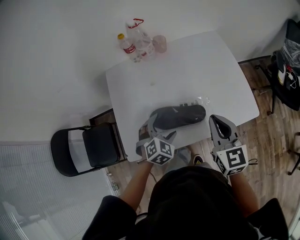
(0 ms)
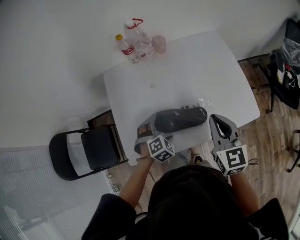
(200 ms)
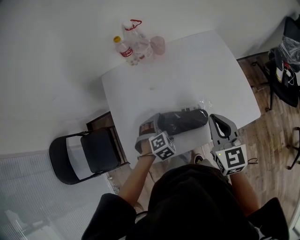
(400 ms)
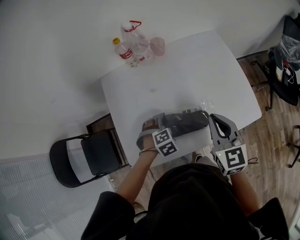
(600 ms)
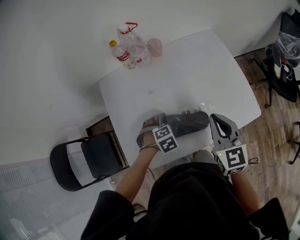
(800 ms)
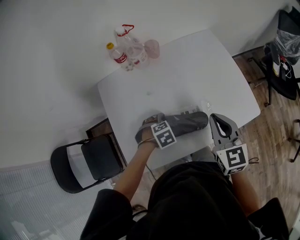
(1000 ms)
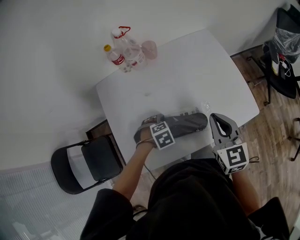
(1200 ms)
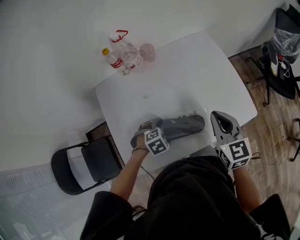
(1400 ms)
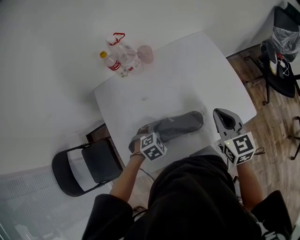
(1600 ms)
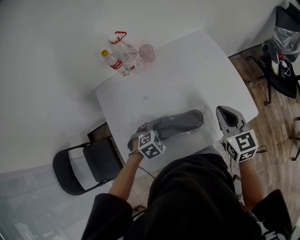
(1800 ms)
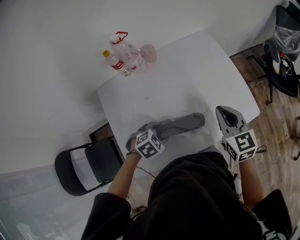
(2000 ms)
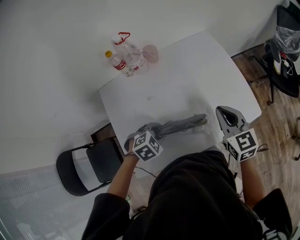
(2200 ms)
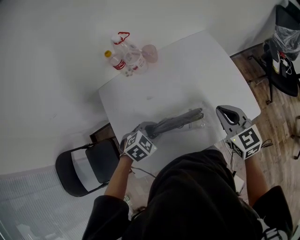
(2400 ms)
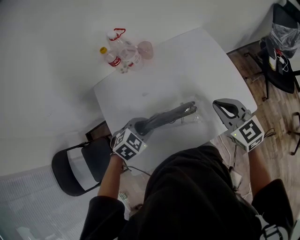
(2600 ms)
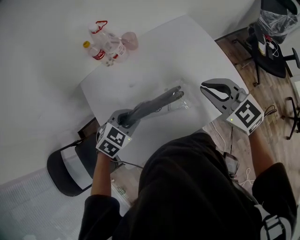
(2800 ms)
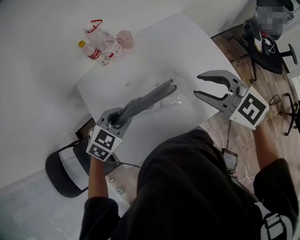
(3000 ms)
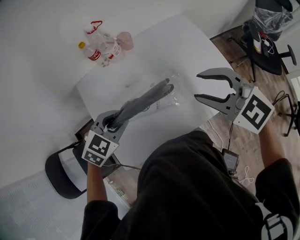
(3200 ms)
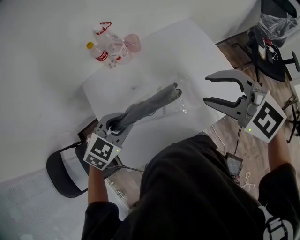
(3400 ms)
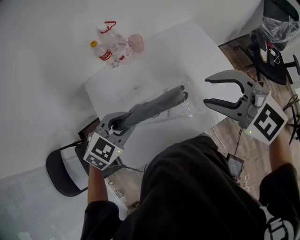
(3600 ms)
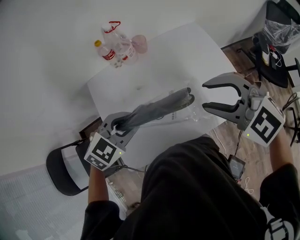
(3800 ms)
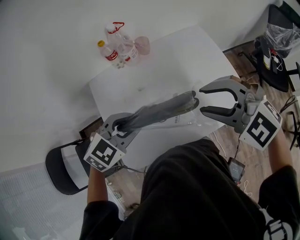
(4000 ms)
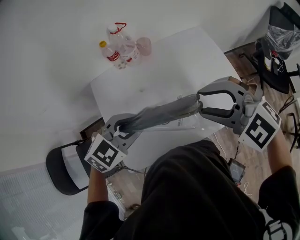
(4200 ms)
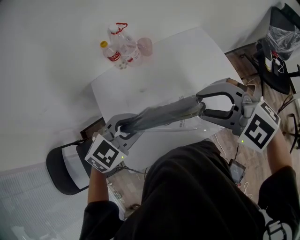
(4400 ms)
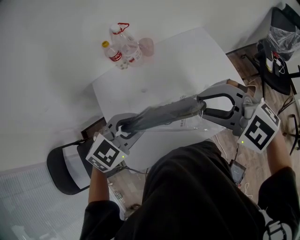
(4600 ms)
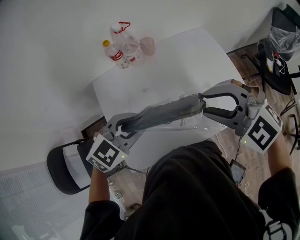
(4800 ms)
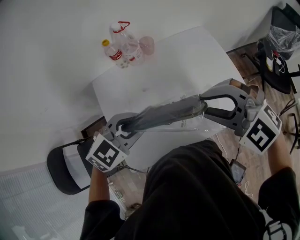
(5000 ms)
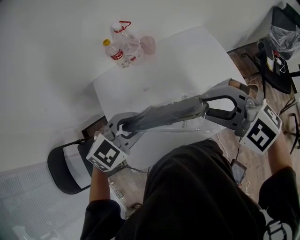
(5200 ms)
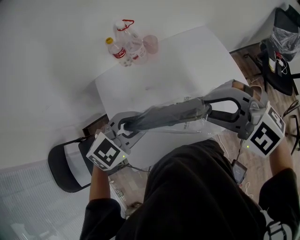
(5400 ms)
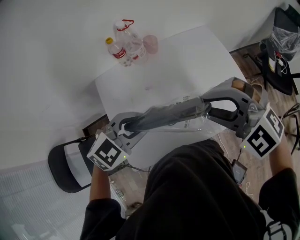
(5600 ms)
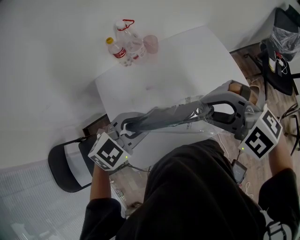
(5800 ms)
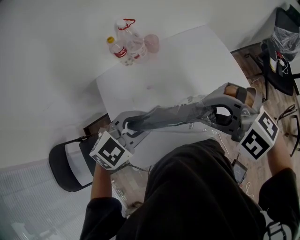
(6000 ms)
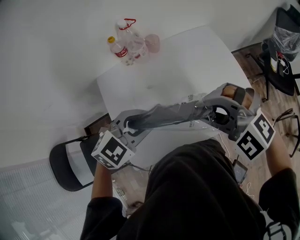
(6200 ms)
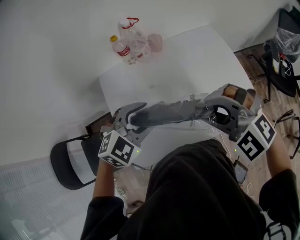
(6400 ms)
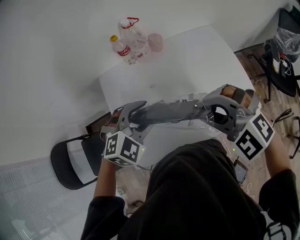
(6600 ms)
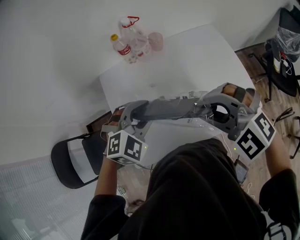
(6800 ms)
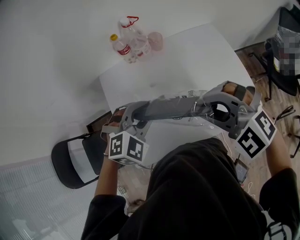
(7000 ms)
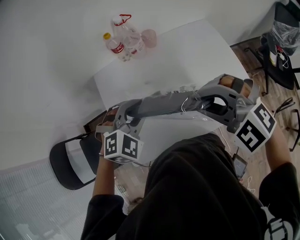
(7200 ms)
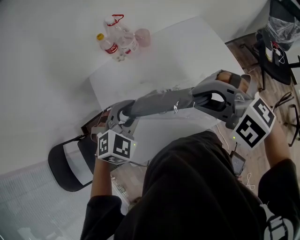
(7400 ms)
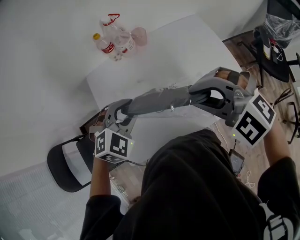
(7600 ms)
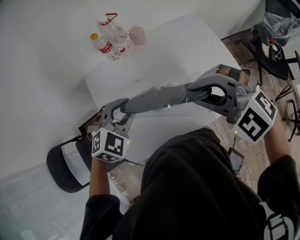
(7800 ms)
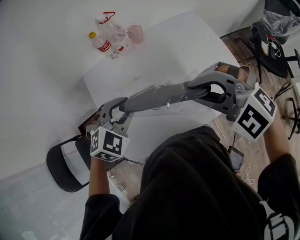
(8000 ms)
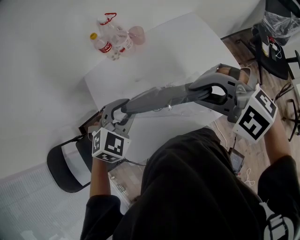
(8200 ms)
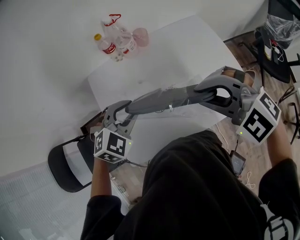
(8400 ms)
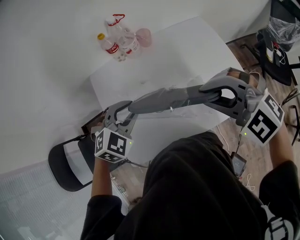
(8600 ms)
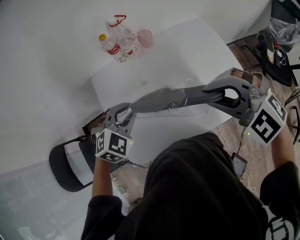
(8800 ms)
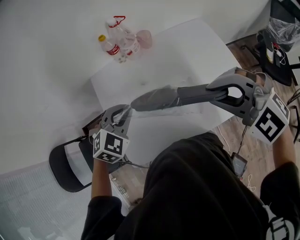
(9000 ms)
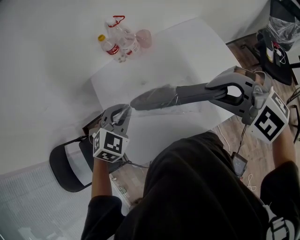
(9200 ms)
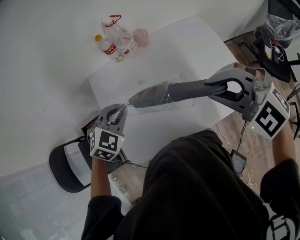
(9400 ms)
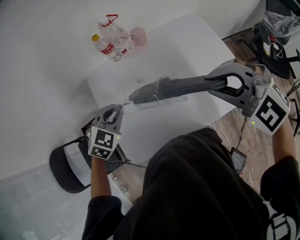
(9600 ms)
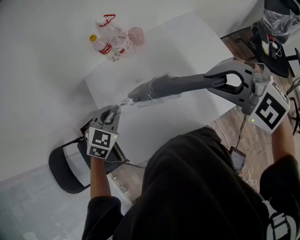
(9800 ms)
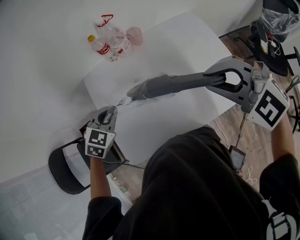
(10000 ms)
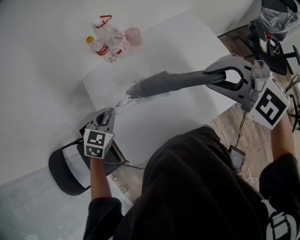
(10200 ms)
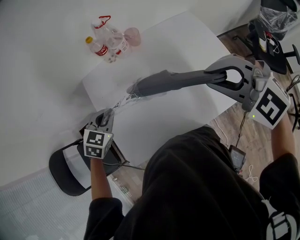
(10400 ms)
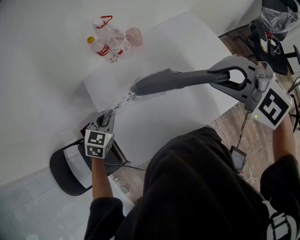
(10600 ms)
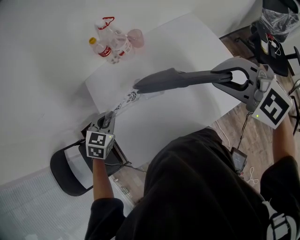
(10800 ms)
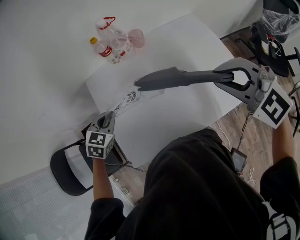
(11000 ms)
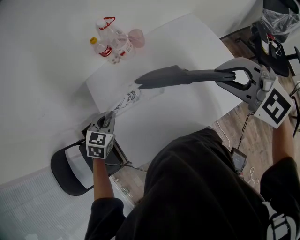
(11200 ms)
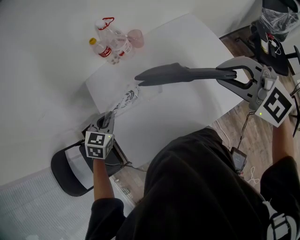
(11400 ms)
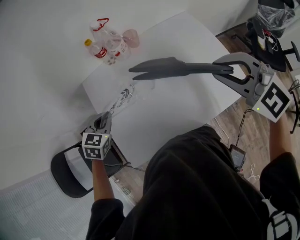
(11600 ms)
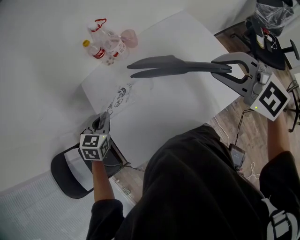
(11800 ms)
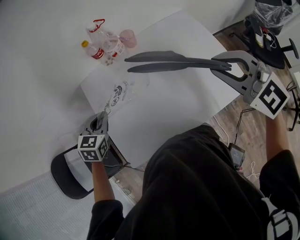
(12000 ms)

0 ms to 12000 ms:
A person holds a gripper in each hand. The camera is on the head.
0 ms to 1600 ms: The right gripper shifts by about 10 cm. The left gripper moves downward, some 5 cm, and rotates about 30 degrees.
1600 ms to 3000 ms: The left gripper shifts roughly 15 cm upward and to the left, and closes, while the right gripper goes roughly 10 cm upward, swivels about 40 degrees, and opens up.
3000 ms to 4400 ms: The left gripper is displaced upward by some 10 cm. The right gripper shifts roughly 5 cm to the left, and changes its angle by approximately 30 degrees.
4400 ms to 6000 ms: The grippers make only small movements.
6000 ms to 7600 ms: The left gripper ends up about 5 cm from where it was, and changes its angle by approximately 30 degrees.
7600 ms to 9000 ms: The grippers make only small movements.
9000 ms to 10400 ms: The left gripper moves to the left, roughly 5 cm, and changes its angle by about 20 degrees.
10400 ms to 12000 ms: The right gripper changes place by roughly 5 cm.

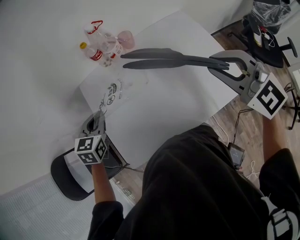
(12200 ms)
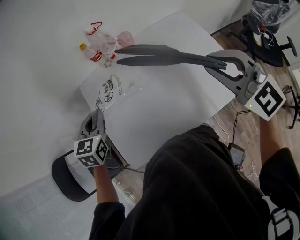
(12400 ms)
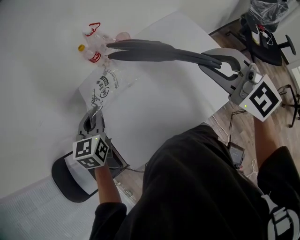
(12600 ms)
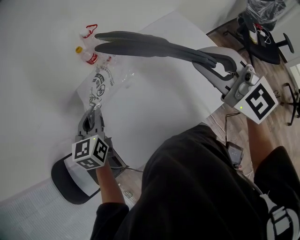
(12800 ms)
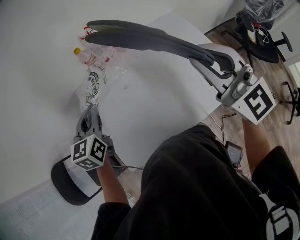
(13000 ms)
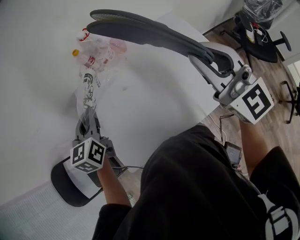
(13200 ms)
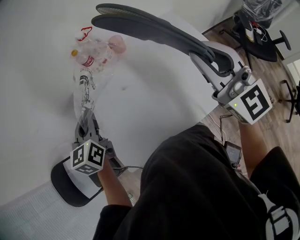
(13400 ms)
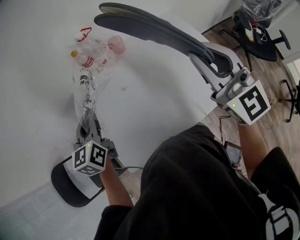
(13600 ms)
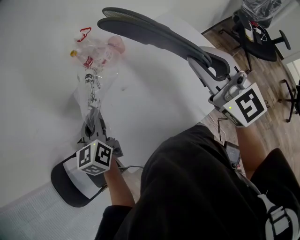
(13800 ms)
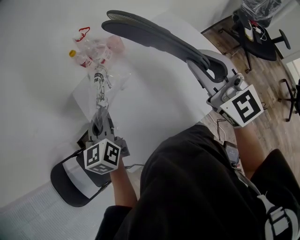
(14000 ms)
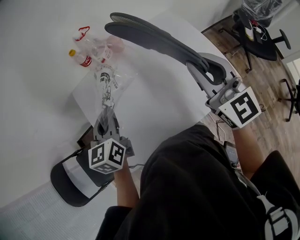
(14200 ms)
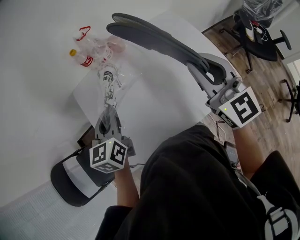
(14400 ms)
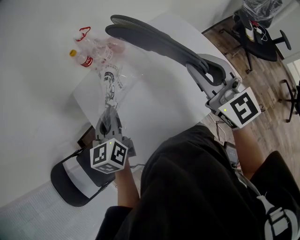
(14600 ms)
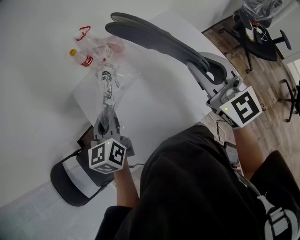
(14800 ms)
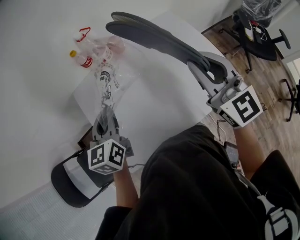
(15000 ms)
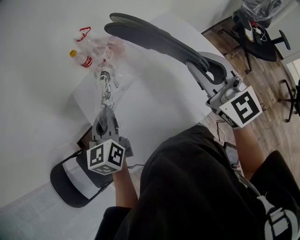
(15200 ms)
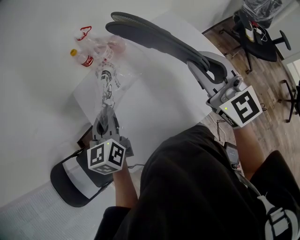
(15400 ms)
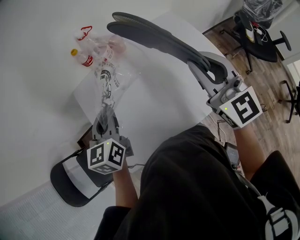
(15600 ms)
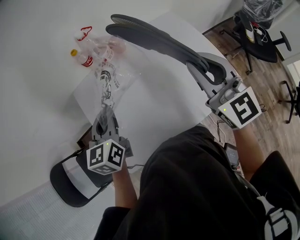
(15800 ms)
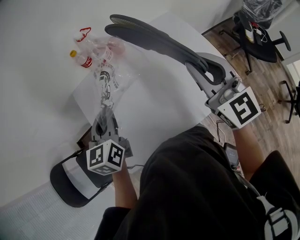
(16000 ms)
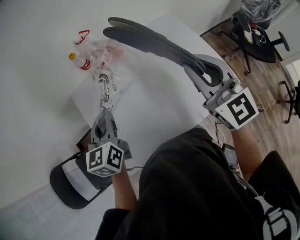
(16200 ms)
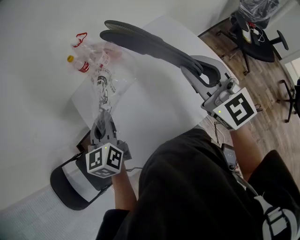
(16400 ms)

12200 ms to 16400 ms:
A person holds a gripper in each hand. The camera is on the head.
12200 ms to 13600 ms: The left gripper goes roughly 10 cm upward, and turns by roughly 30 degrees. The right gripper changes place by some 5 cm, and turns by about 30 degrees.
13600 ms to 15000 ms: The left gripper heads to the right, covering about 5 cm.
15000 ms to 16400 ms: Neither gripper changes place.

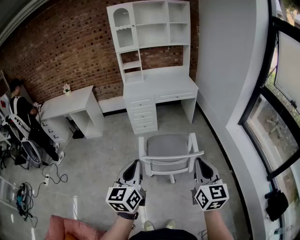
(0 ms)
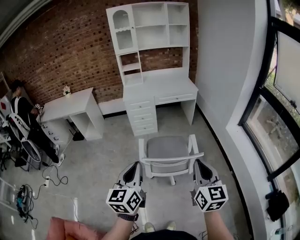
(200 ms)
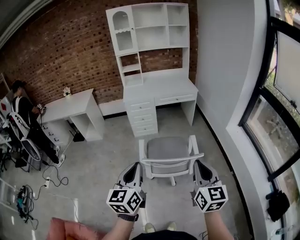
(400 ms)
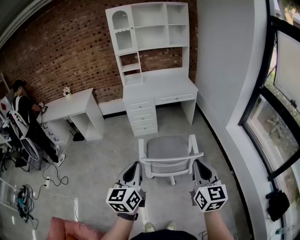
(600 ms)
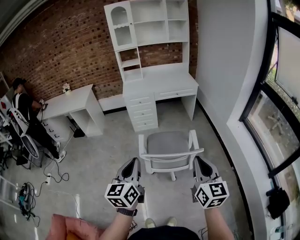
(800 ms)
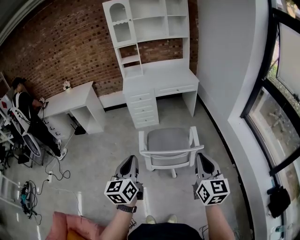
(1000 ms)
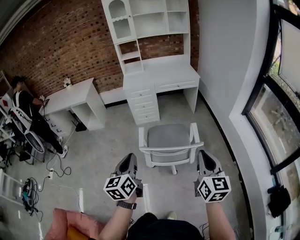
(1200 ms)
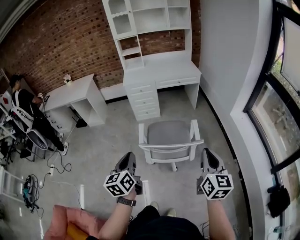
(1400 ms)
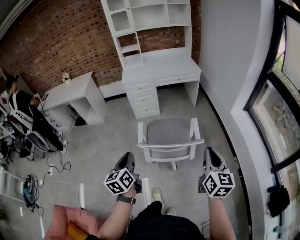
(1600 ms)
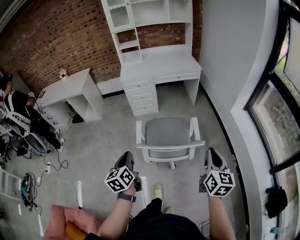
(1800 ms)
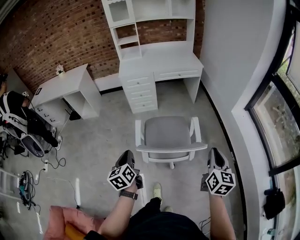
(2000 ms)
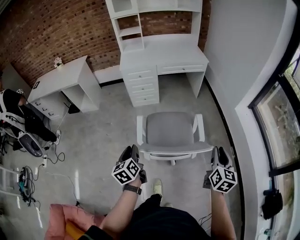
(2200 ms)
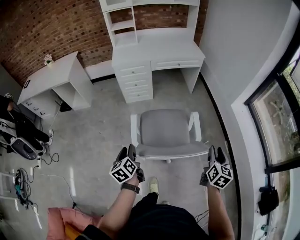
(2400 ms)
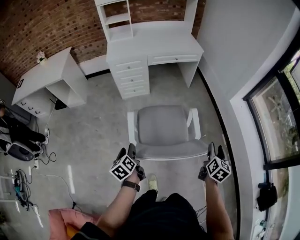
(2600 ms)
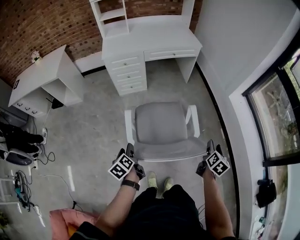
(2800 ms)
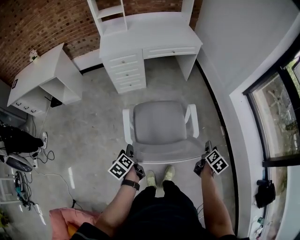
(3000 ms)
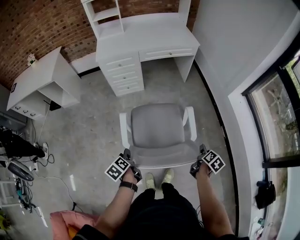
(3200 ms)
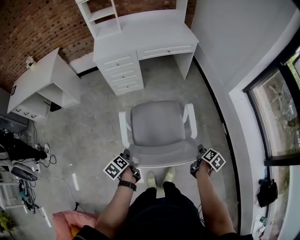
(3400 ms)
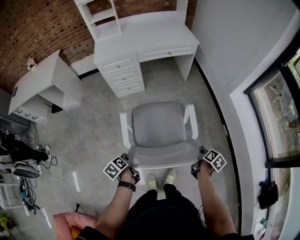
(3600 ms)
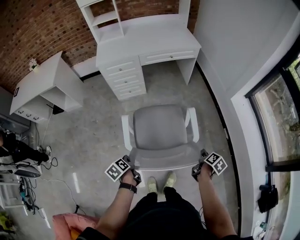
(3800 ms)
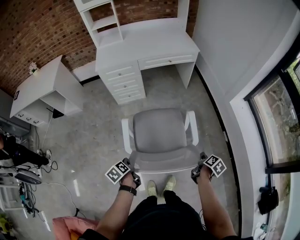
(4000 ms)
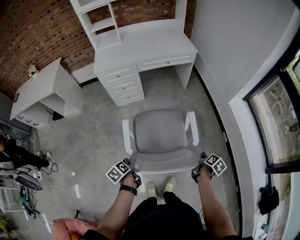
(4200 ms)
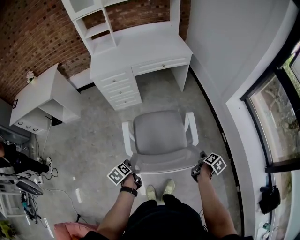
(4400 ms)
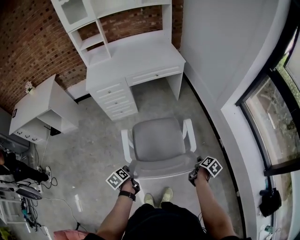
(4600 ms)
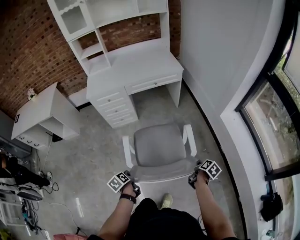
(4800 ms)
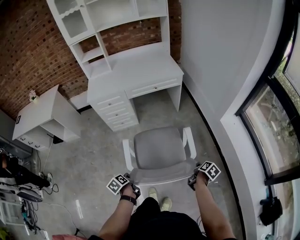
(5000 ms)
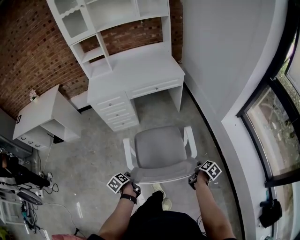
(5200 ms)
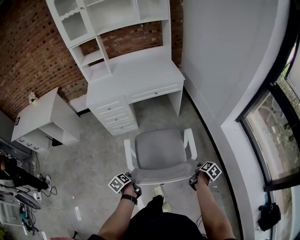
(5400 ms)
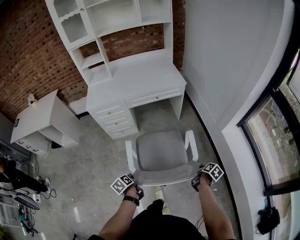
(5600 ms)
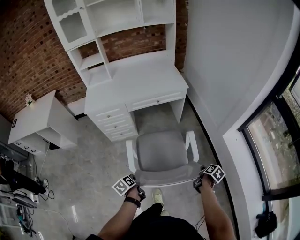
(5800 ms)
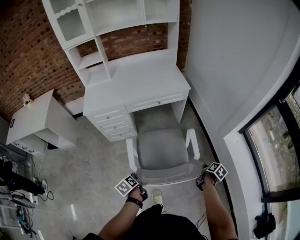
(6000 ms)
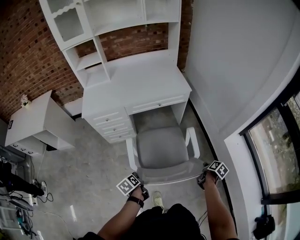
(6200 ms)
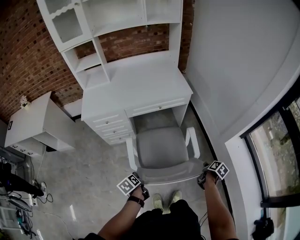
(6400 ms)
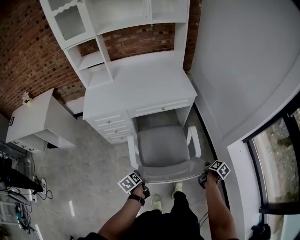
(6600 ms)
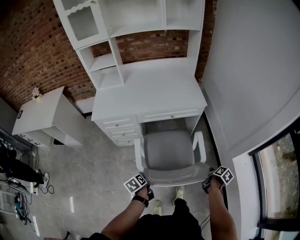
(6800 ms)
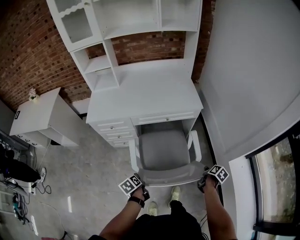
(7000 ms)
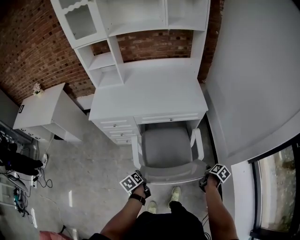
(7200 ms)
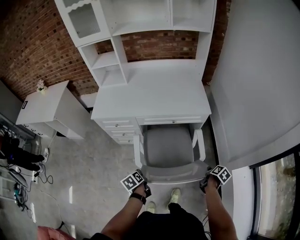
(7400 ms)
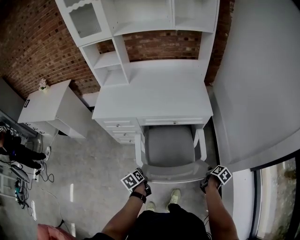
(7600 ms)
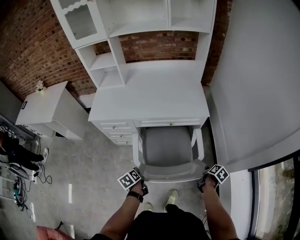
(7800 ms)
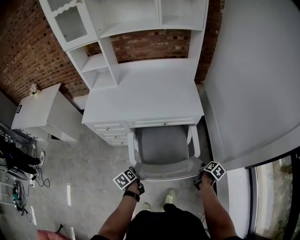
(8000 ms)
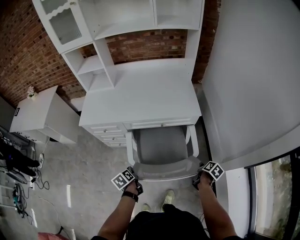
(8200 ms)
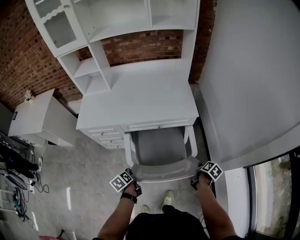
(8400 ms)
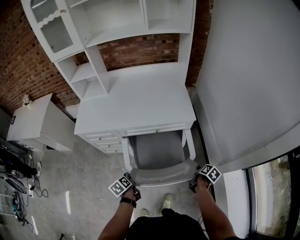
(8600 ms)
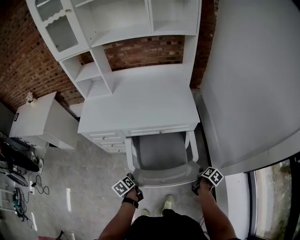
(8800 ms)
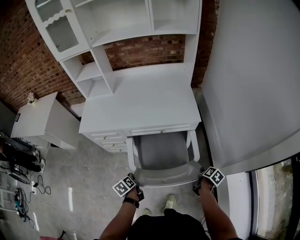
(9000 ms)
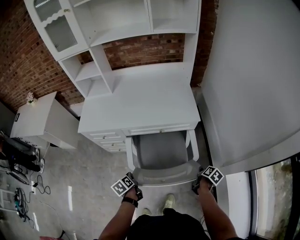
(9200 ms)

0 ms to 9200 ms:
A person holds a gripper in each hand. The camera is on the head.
0 ms to 1600 ms: The right gripper heads to the right and downward, covering approximately 10 cm, while the left gripper is displaced downward by about 15 cm, and changes its angle by roughly 20 degrees.
1600 ms to 3000 ms: Both grippers move downward and forward, some 35 cm. The left gripper swivels about 40 degrees, and opens its fingers. The right gripper tips its fingers downward by roughly 30 degrees, and opens its fingers.
3000 ms to 4600 ms: The left gripper shifts approximately 10 cm forward and to the right, and closes up, while the right gripper travels downward, forward and to the right by about 10 cm, changes its angle by some 20 degrees, and closes up.
4600 ms to 6200 ms: Both grippers travel together forward, about 25 cm.
6200 ms to 7600 ms: Both grippers move forward, approximately 20 cm.
7600 ms to 9200 ms: The grippers both shift forward by approximately 5 cm.
